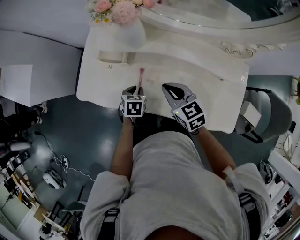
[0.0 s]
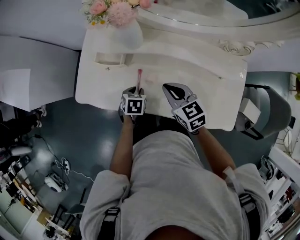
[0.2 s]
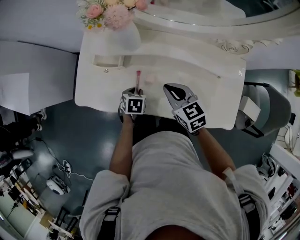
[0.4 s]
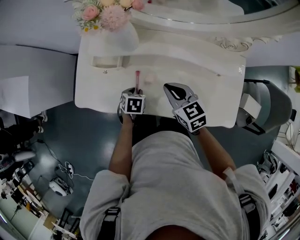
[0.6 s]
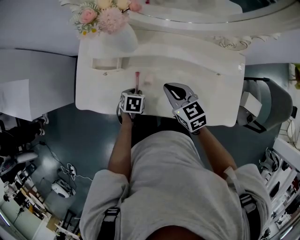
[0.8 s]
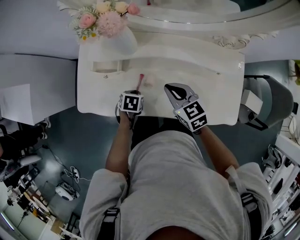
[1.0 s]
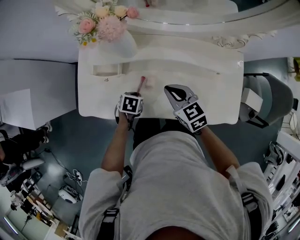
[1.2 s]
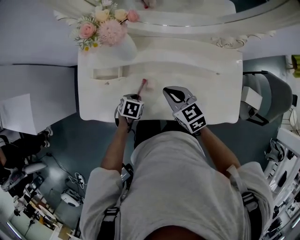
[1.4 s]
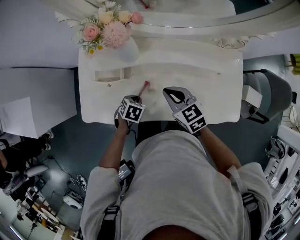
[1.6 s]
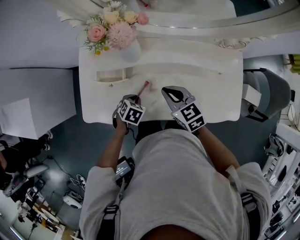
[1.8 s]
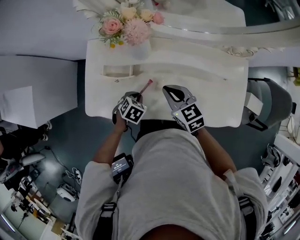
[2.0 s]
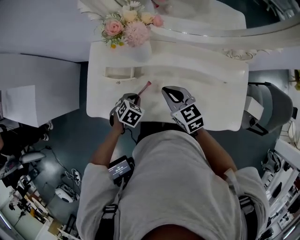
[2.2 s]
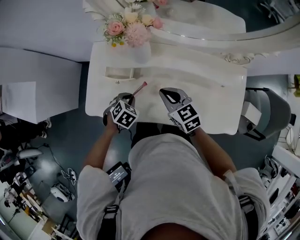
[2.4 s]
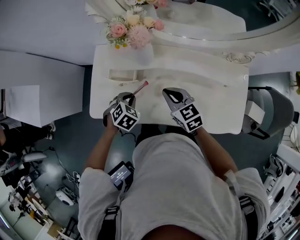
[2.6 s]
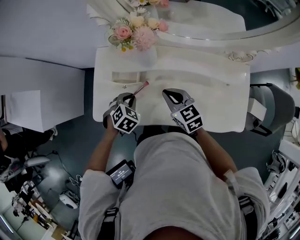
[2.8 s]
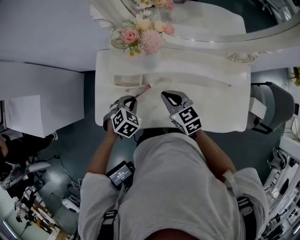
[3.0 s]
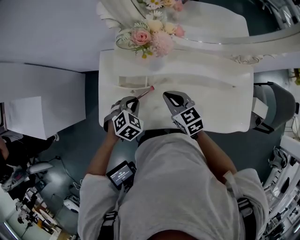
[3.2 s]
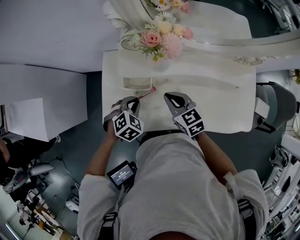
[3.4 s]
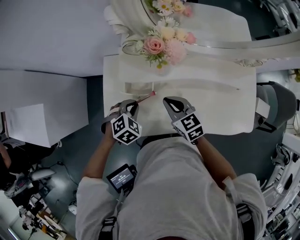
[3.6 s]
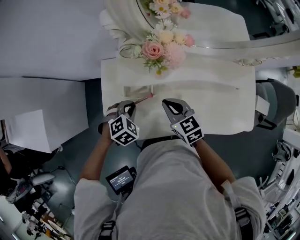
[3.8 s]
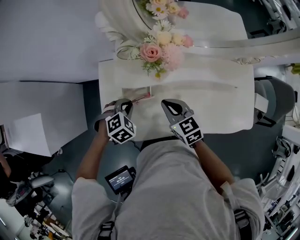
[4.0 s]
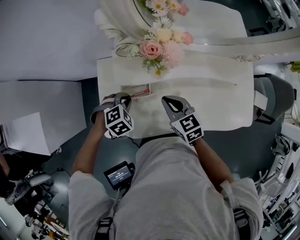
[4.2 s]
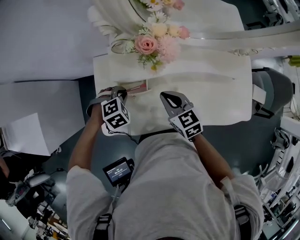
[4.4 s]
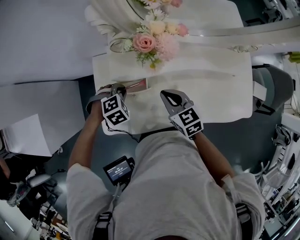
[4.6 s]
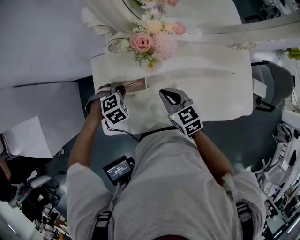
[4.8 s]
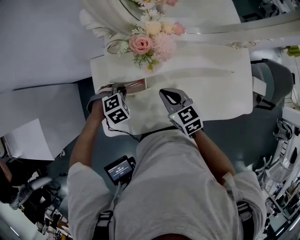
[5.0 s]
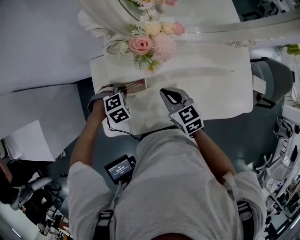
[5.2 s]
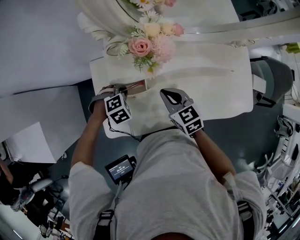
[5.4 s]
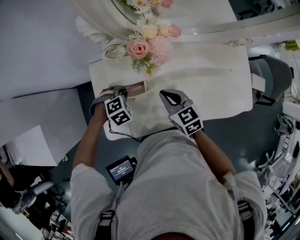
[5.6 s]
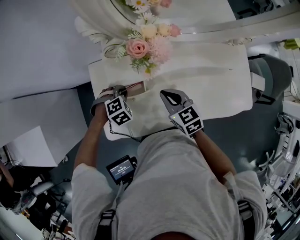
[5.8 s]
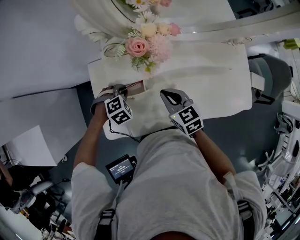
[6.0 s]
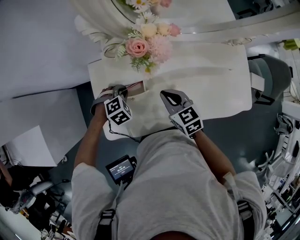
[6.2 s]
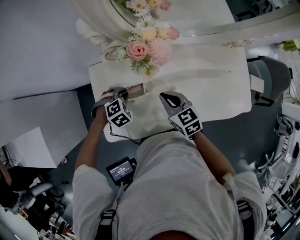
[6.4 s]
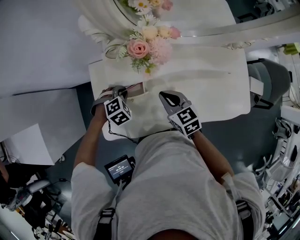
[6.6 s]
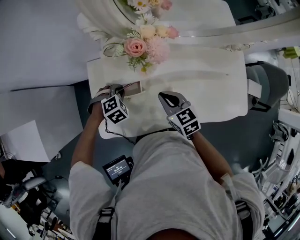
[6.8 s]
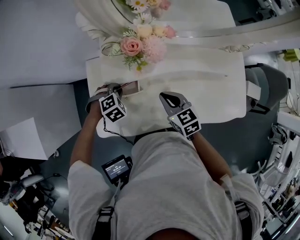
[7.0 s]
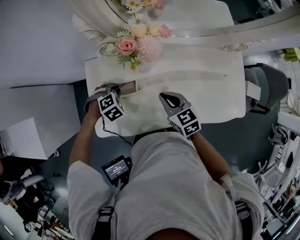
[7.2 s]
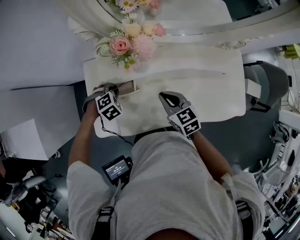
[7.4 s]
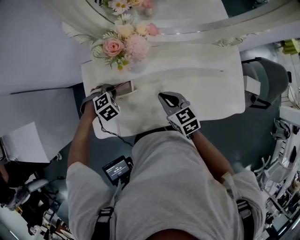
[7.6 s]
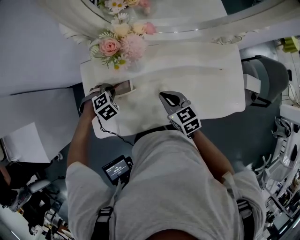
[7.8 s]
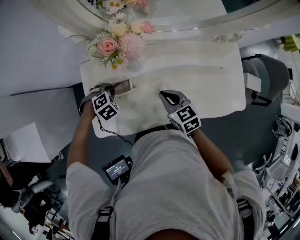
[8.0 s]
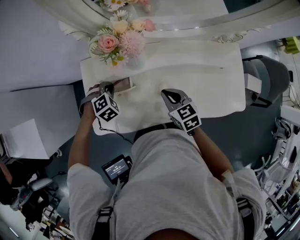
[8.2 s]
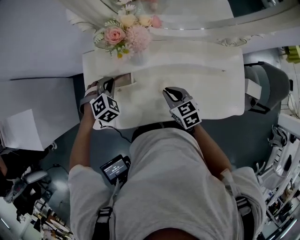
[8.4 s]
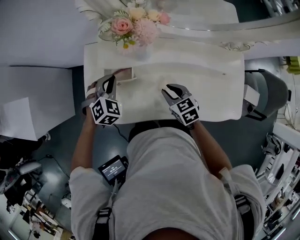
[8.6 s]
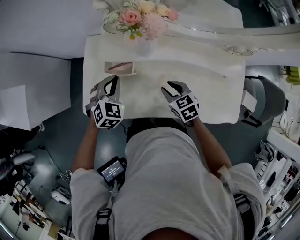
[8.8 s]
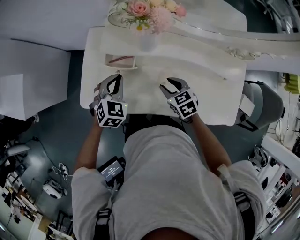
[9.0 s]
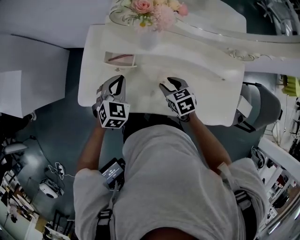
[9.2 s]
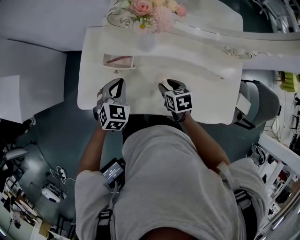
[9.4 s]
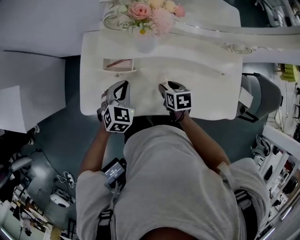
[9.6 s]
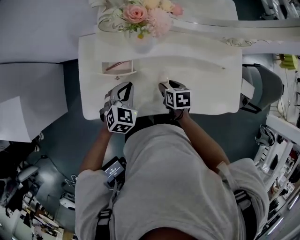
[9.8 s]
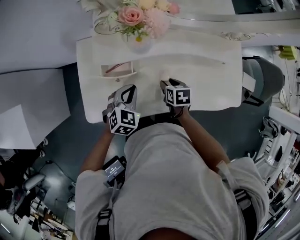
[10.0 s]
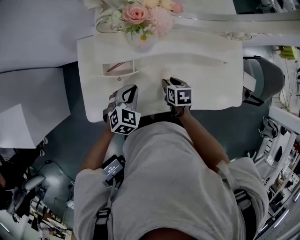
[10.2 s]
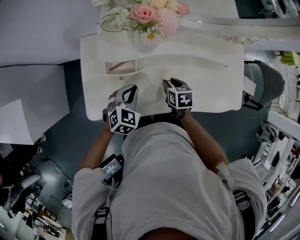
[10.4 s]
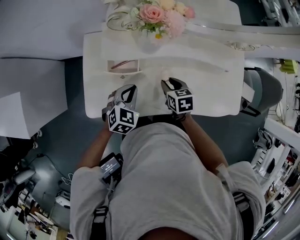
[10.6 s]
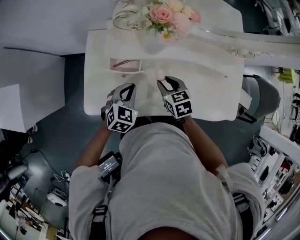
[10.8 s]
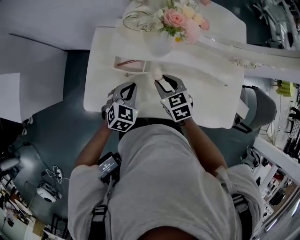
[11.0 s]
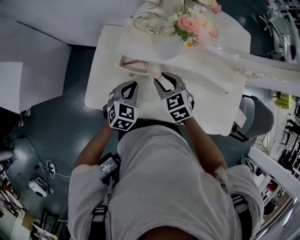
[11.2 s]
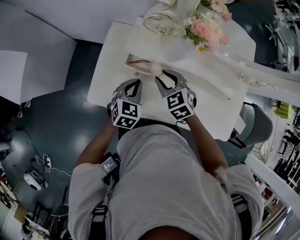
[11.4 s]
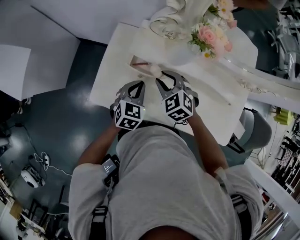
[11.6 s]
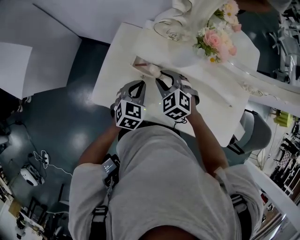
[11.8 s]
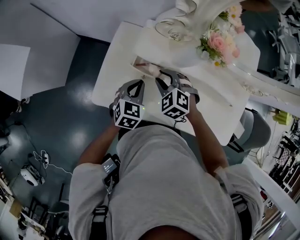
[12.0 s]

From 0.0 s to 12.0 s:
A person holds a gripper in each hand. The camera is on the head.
From 0.0 s to 1.6 s: The left gripper turns by approximately 30 degrees.
From 1.6 s to 3.0 s: The right gripper moves to the left, about 10 cm, while the left gripper heads upward and to the left, covering some 15 cm, and swivels about 30 degrees.
From 3.0 s to 4.4 s: The left gripper is displaced forward and to the left by about 10 cm, and turns by roughly 30 degrees; the right gripper moves roughly 5 cm.
From 4.4 s to 6.0 s: The grippers make only small movements.
From 6.0 s to 7.6 s: The right gripper ends up approximately 5 cm from where it was.
From 7.6 s to 9.0 s: The left gripper shifts roughly 10 cm upward, and points its fingers some 30 degrees further upward. The right gripper heads downward, covering approximately 5 cm, swivels approximately 20 degrees, and opens up.
From 9.0 s to 10.4 s: The left gripper ends up about 5 cm from where it was, and changes its angle by about 20 degrees, while the right gripper goes approximately 5 cm downward, and rotates approximately 40 degrees.
From 10.4 s to 12.0 s: The right gripper goes approximately 20 cm to the left, upward and forward, and rotates around the line of its fingers by some 80 degrees, counterclockwise from behind, while the left gripper shifts approximately 10 cm to the left, and rotates some 30 degrees.

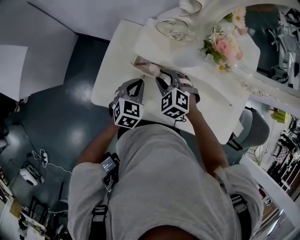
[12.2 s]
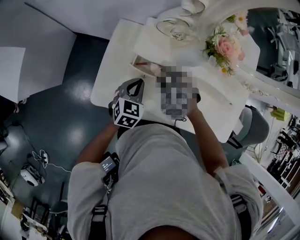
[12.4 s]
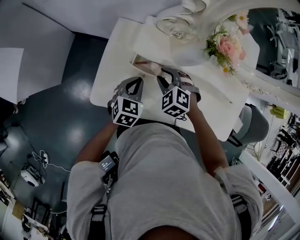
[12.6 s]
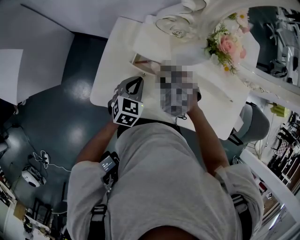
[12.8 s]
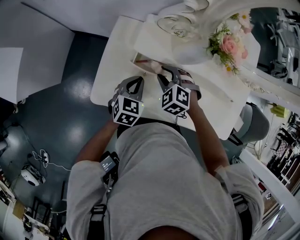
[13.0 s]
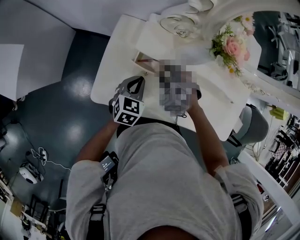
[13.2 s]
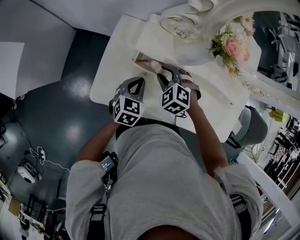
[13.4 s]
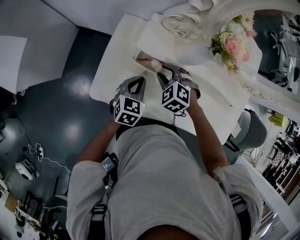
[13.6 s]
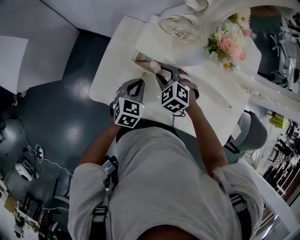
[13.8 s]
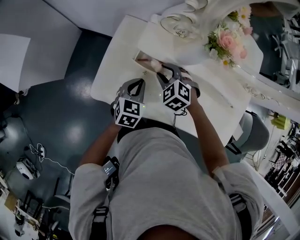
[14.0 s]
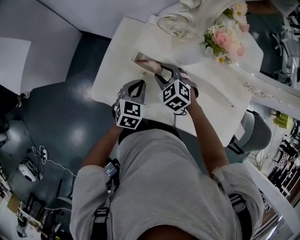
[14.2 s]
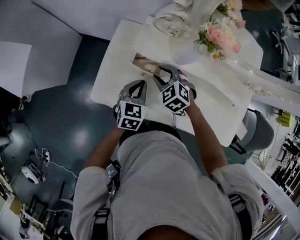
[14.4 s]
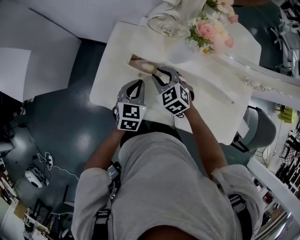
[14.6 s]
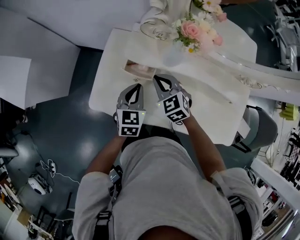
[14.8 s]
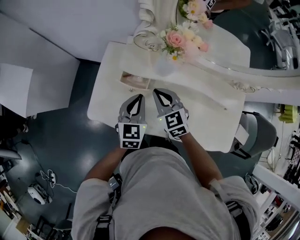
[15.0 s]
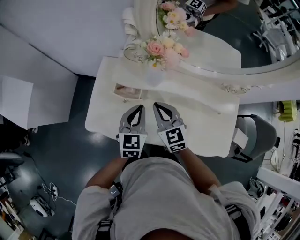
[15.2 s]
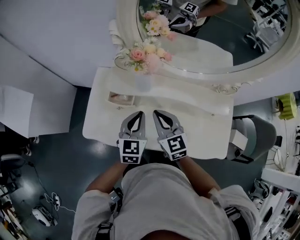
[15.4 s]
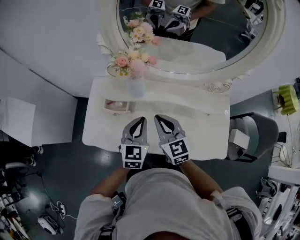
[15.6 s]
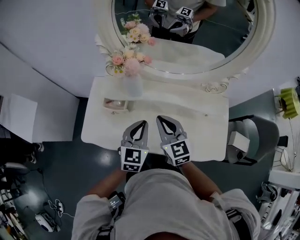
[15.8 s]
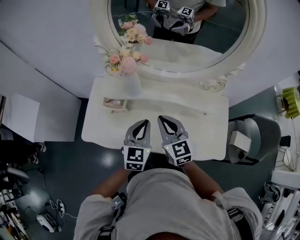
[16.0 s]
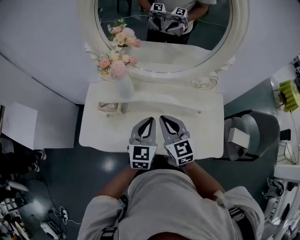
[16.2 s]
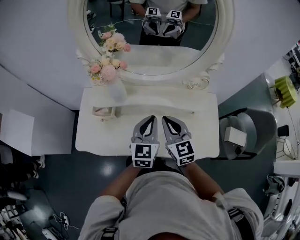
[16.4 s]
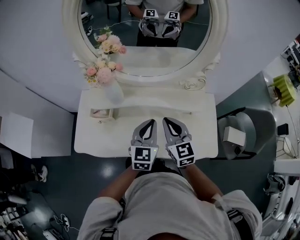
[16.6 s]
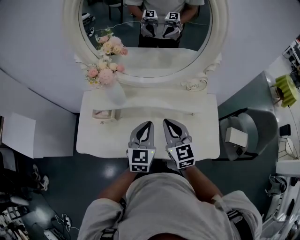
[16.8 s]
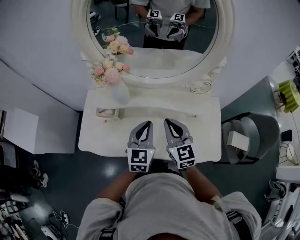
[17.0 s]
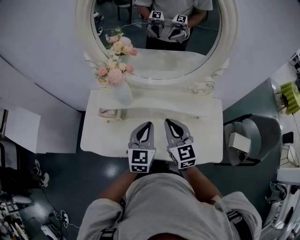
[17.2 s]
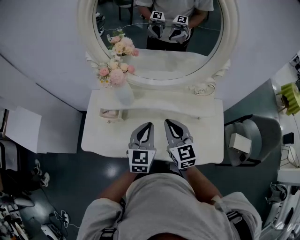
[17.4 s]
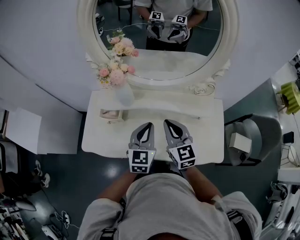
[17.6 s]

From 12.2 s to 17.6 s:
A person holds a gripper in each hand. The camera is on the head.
From 12.2 s to 13.6 s: The grippers make only small movements.
From 13.6 s to 15.0 s: Both grippers move upward and to the right, roughly 10 cm. The right gripper swivels roughly 40 degrees, and closes.
From 15.0 s to 16.2 s: The left gripper is displaced to the right and upward by approximately 25 cm. The right gripper is displaced to the right, upward and backward by some 25 cm, and swivels about 20 degrees.

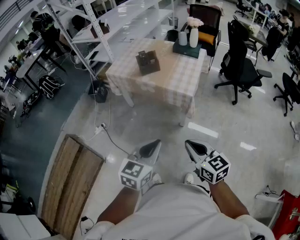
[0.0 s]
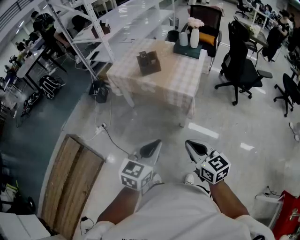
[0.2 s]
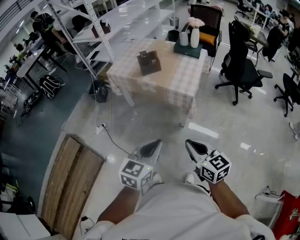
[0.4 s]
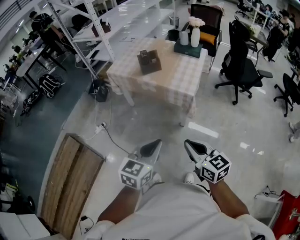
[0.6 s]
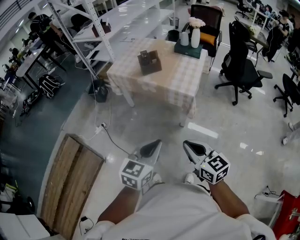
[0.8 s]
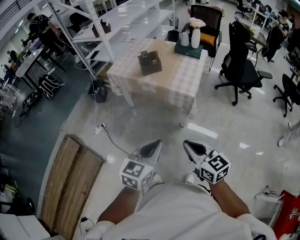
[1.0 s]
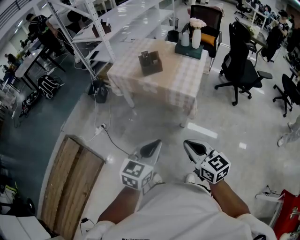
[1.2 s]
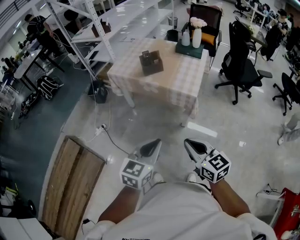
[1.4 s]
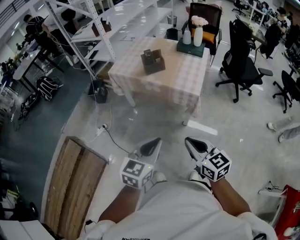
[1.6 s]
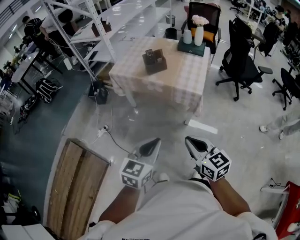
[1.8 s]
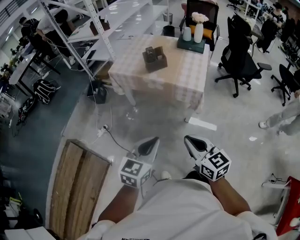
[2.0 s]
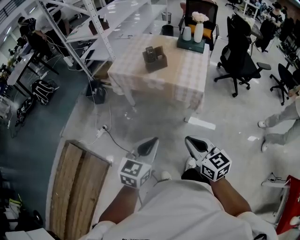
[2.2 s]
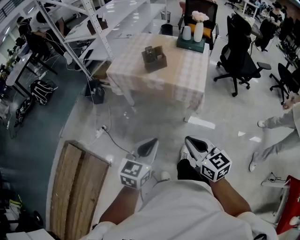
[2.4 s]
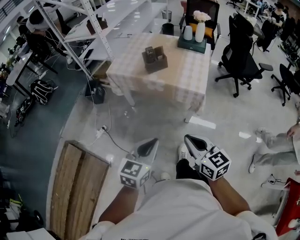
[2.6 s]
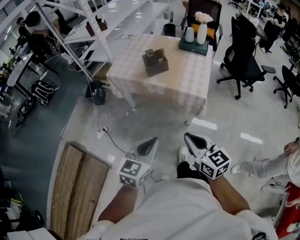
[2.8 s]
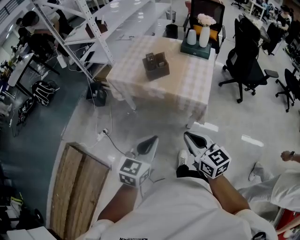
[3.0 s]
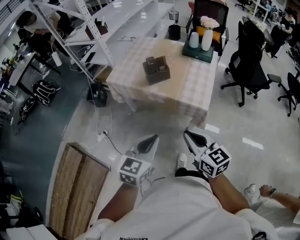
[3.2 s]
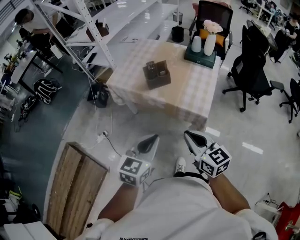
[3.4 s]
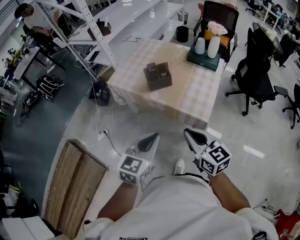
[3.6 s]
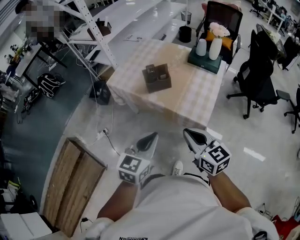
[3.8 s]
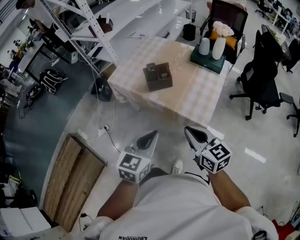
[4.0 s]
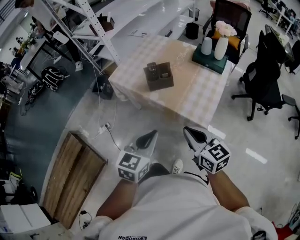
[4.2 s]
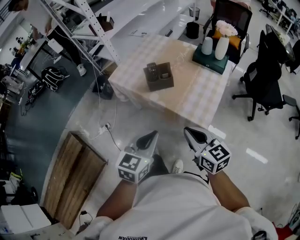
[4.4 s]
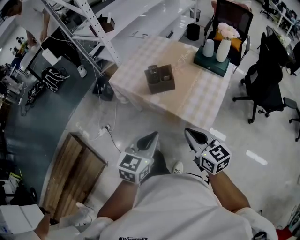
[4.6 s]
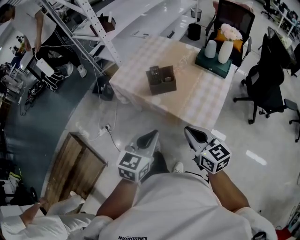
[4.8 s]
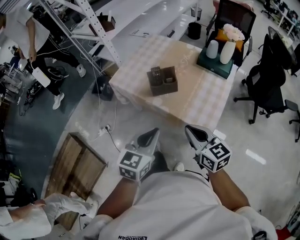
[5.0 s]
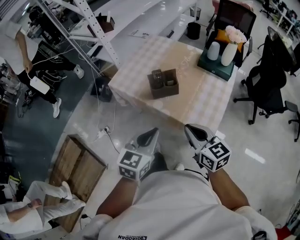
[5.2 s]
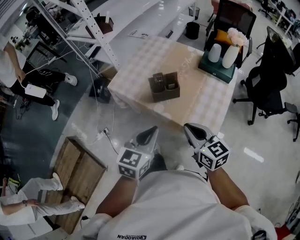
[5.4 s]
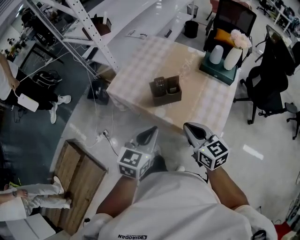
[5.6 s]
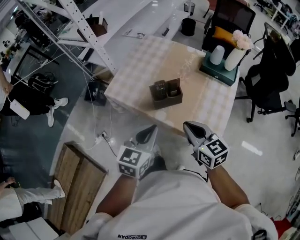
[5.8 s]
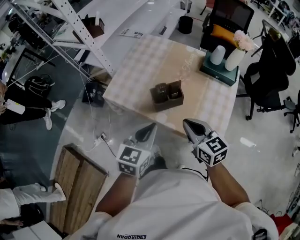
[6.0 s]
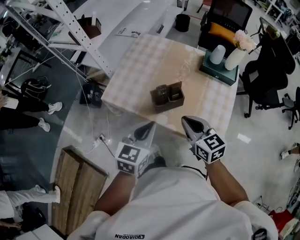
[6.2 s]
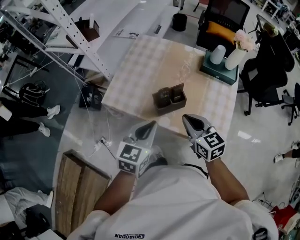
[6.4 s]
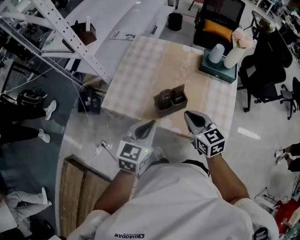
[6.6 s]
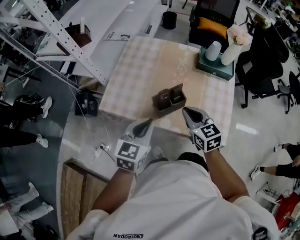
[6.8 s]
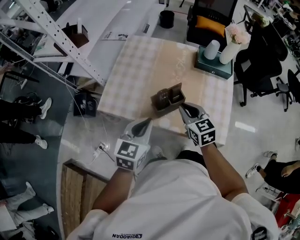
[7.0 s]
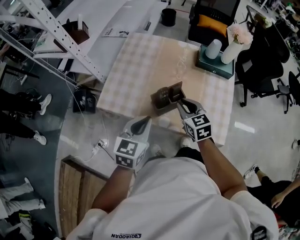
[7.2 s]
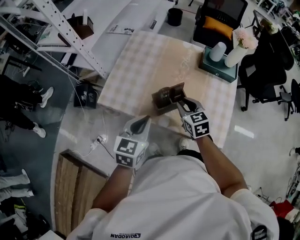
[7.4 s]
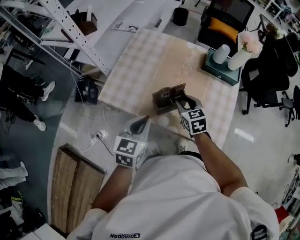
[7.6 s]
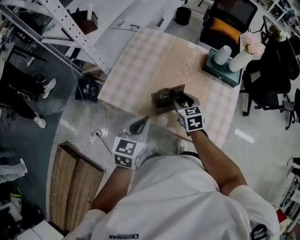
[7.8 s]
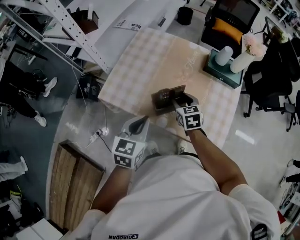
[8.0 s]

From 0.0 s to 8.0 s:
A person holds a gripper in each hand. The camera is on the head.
From 0.0 s to 1.6 s: The grippers both shift to the left by some 5 cm.
From 1.6 s to 3.2 s: The two grippers go roughly 15 cm forward.
From 3.2 s to 4.8 s: The grippers both shift forward and to the right by roughly 15 cm.
From 4.8 s to 6.4 s: The two grippers go approximately 25 cm forward.
From 6.4 s to 8.0 s: The right gripper heads forward and downward, covering some 15 cm, and opens; the left gripper moves approximately 5 cm.
